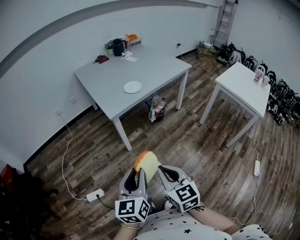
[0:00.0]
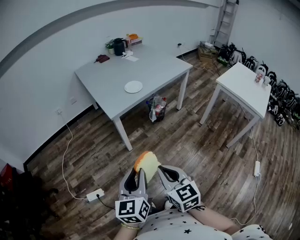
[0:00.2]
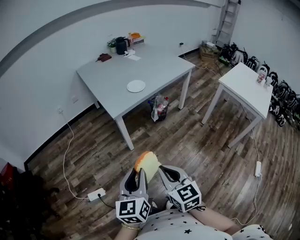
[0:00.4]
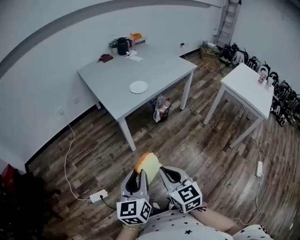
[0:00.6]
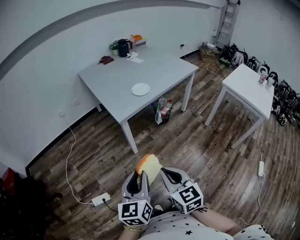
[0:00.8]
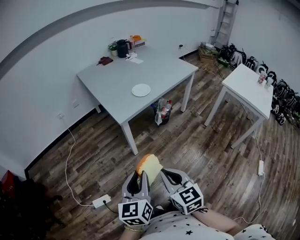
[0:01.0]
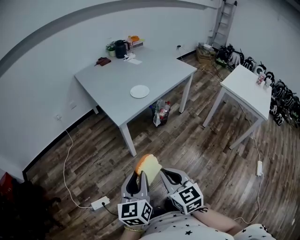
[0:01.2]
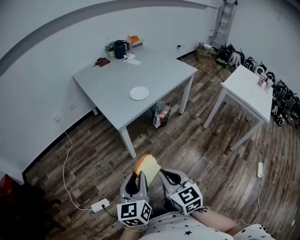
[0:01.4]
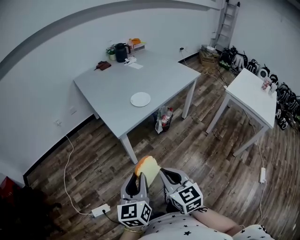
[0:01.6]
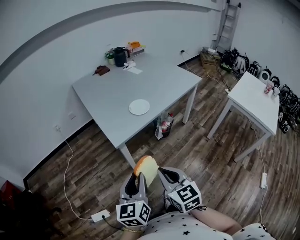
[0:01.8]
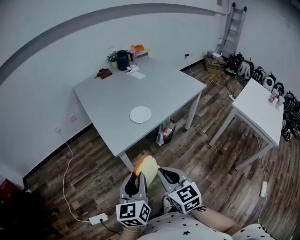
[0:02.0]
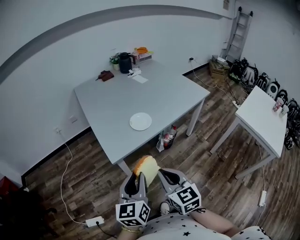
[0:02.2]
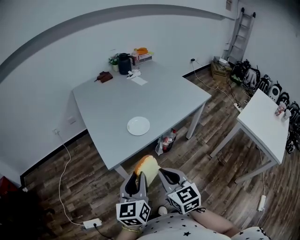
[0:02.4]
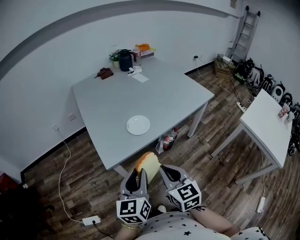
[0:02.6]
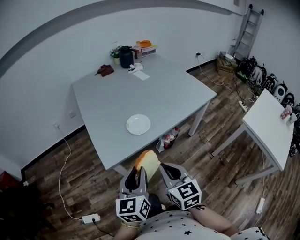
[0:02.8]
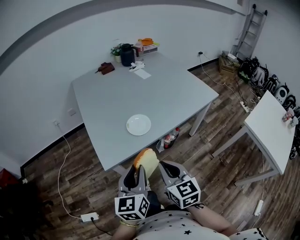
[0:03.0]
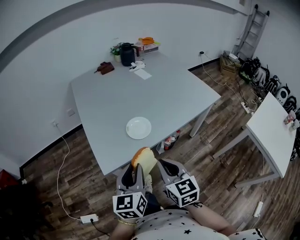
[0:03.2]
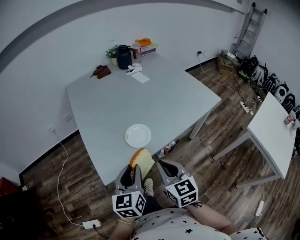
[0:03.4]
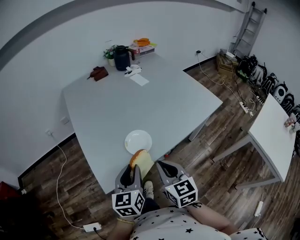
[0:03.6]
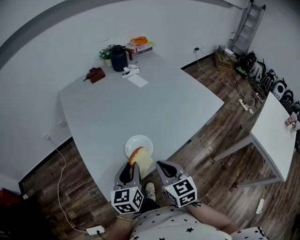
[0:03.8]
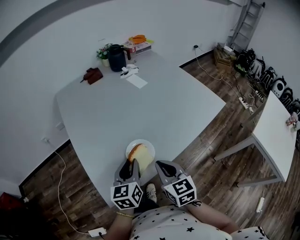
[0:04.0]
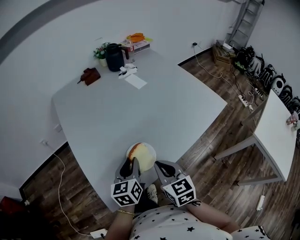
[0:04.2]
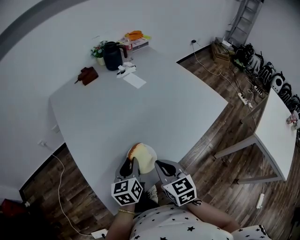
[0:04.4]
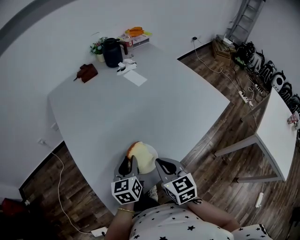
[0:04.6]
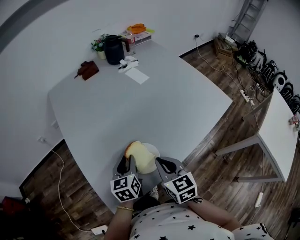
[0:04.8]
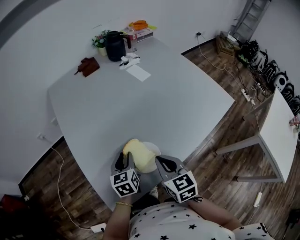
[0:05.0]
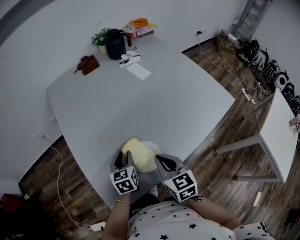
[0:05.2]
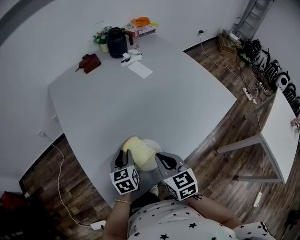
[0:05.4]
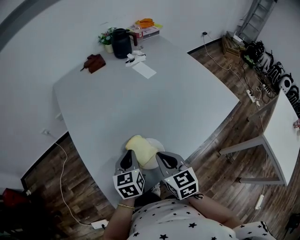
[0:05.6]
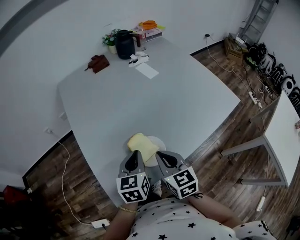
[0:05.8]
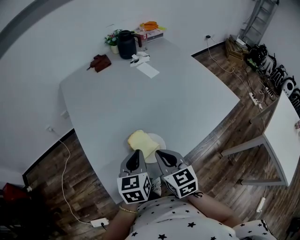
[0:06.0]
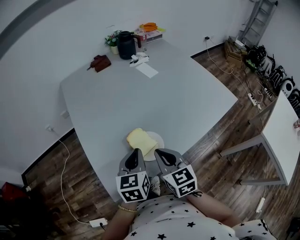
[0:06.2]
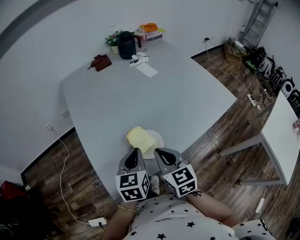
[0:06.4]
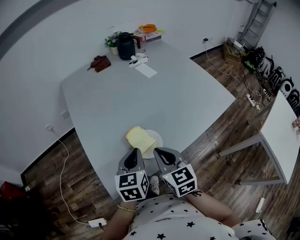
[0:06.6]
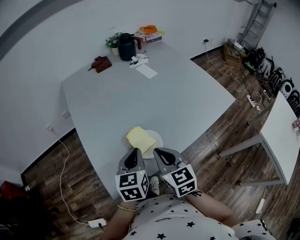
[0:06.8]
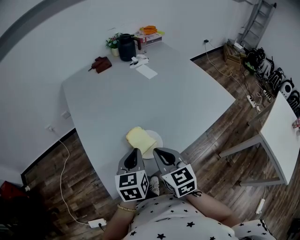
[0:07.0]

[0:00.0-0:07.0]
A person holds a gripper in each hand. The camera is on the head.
0:00.0 to 0:01.4: The grippers both shift forward and to the left by approximately 10 cm.
0:01.4 to 0:02.8: Both grippers move forward and to the right, some 30 cm.
0:02.8 to 0:04.2: The two grippers go about 30 cm forward.
0:04.2 to 0:05.6: The right gripper ends up some 5 cm from where it was.
0:05.6 to 0:07.0: The right gripper changes place by some 5 cm. Meanwhile the left gripper travels backward and upward by some 10 cm.

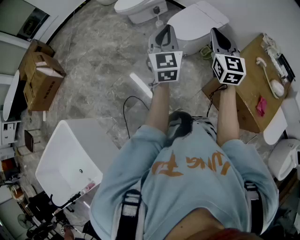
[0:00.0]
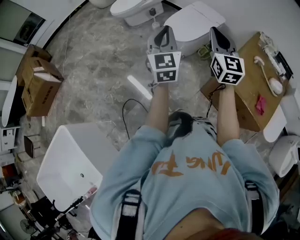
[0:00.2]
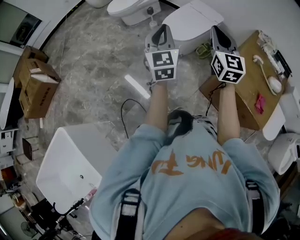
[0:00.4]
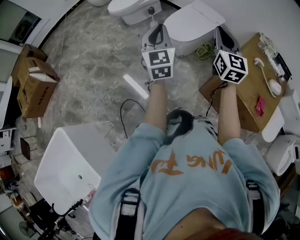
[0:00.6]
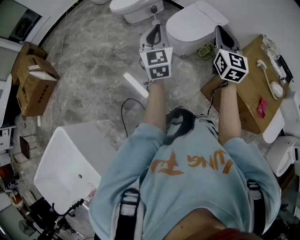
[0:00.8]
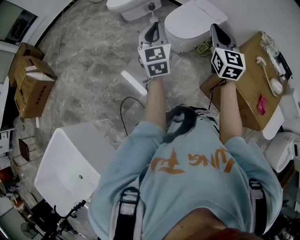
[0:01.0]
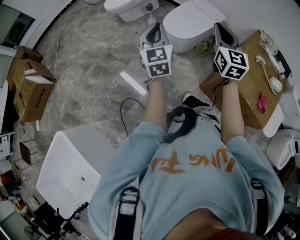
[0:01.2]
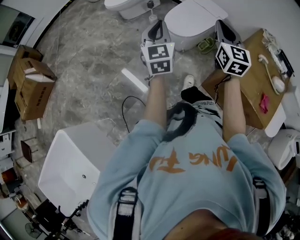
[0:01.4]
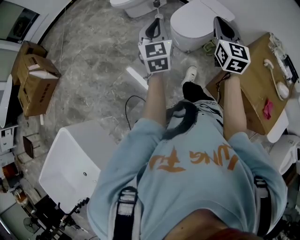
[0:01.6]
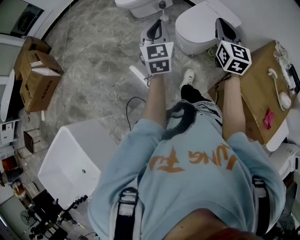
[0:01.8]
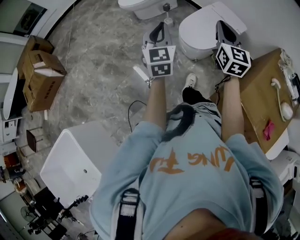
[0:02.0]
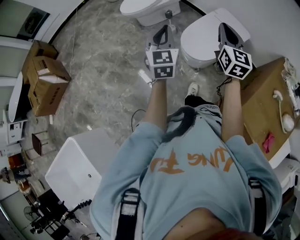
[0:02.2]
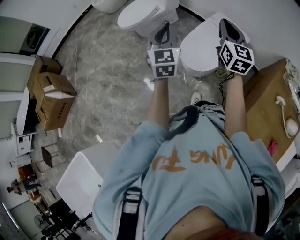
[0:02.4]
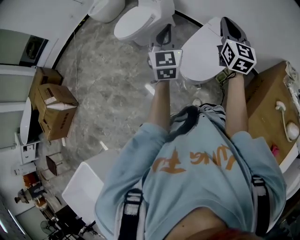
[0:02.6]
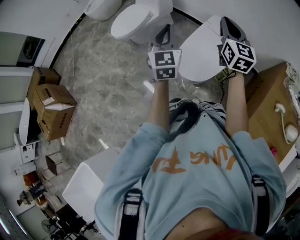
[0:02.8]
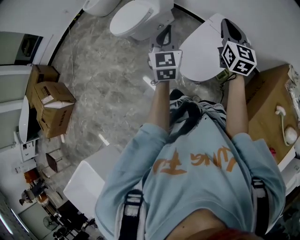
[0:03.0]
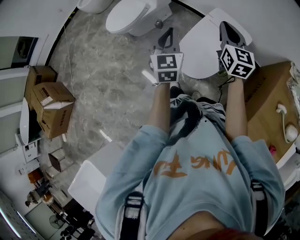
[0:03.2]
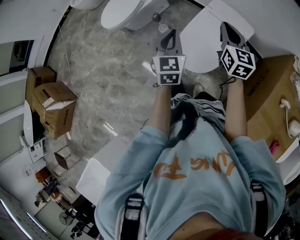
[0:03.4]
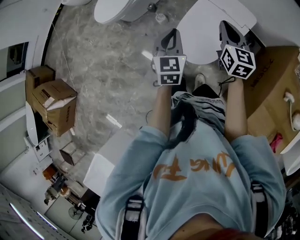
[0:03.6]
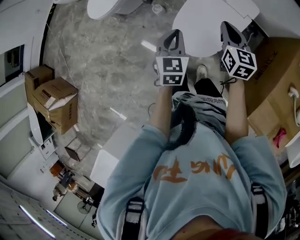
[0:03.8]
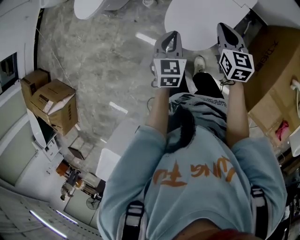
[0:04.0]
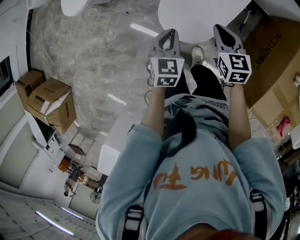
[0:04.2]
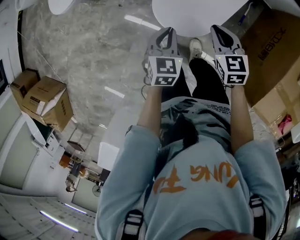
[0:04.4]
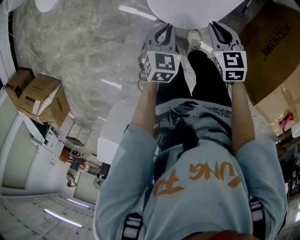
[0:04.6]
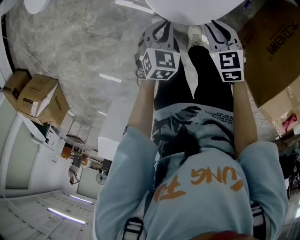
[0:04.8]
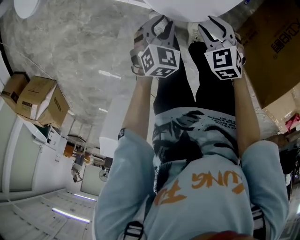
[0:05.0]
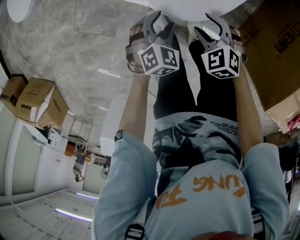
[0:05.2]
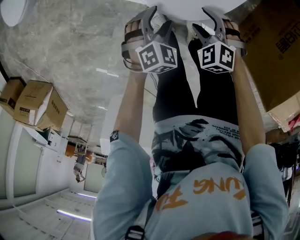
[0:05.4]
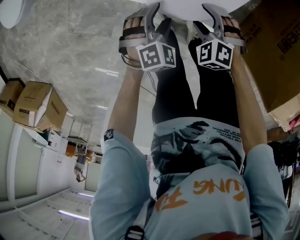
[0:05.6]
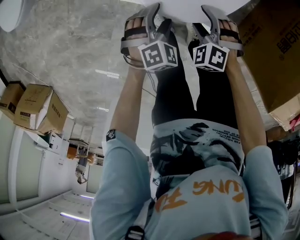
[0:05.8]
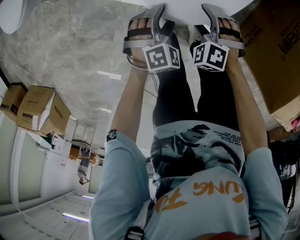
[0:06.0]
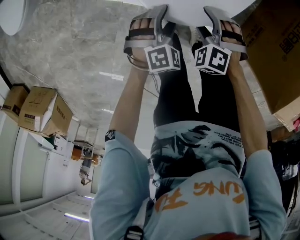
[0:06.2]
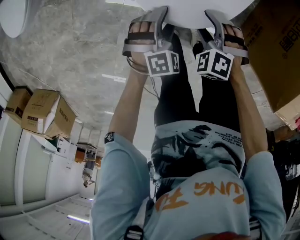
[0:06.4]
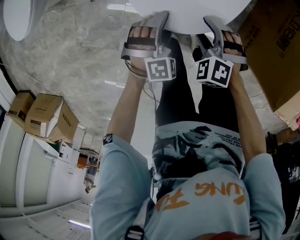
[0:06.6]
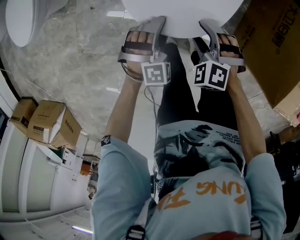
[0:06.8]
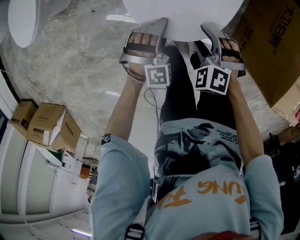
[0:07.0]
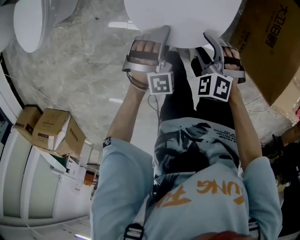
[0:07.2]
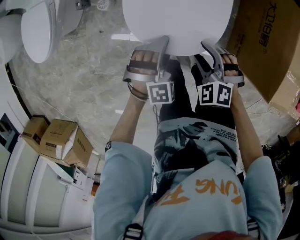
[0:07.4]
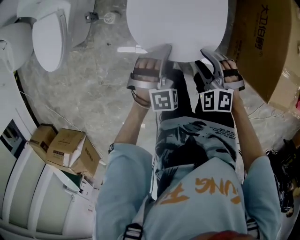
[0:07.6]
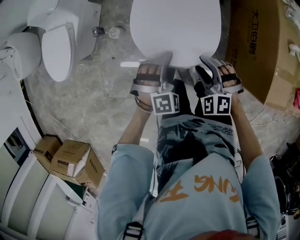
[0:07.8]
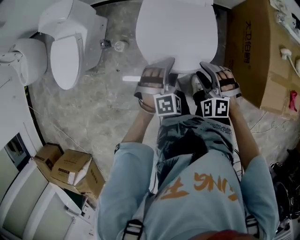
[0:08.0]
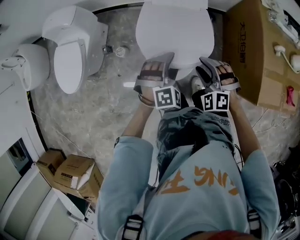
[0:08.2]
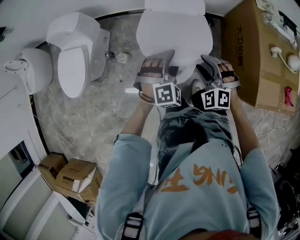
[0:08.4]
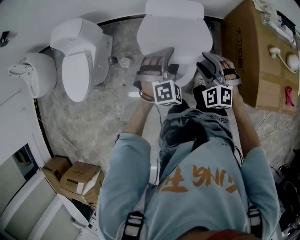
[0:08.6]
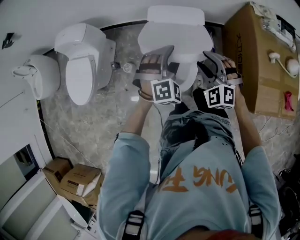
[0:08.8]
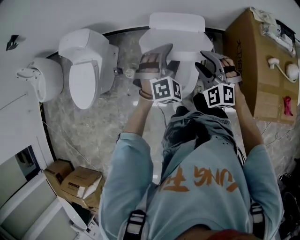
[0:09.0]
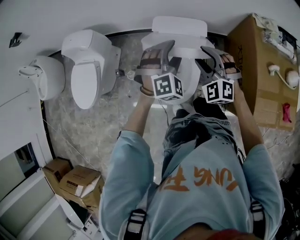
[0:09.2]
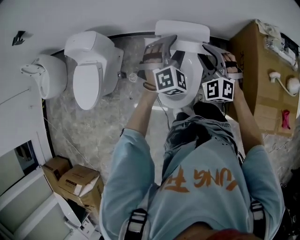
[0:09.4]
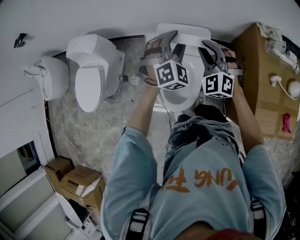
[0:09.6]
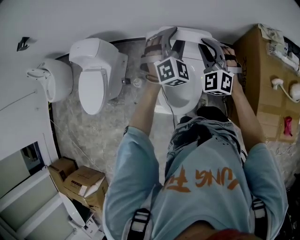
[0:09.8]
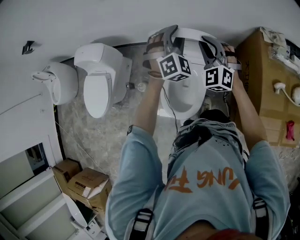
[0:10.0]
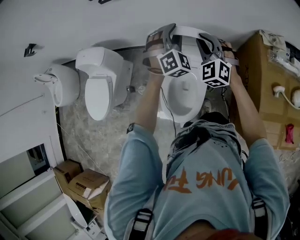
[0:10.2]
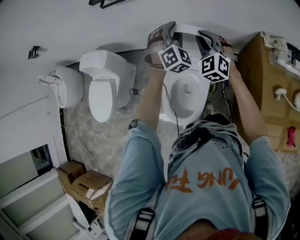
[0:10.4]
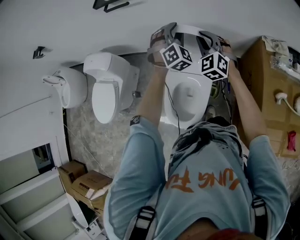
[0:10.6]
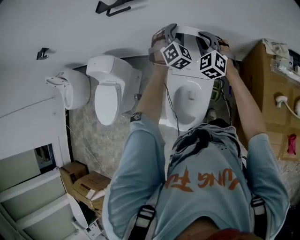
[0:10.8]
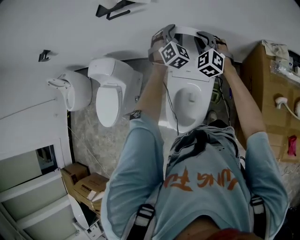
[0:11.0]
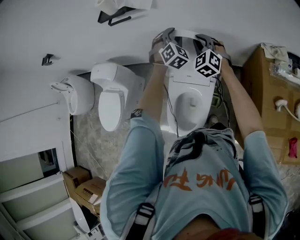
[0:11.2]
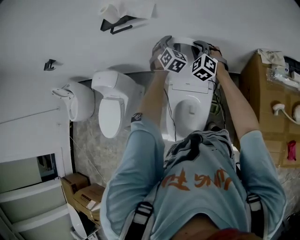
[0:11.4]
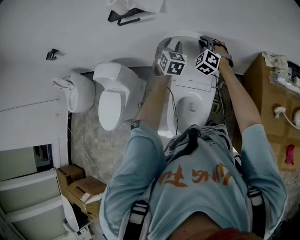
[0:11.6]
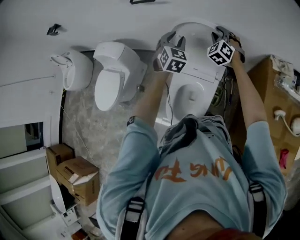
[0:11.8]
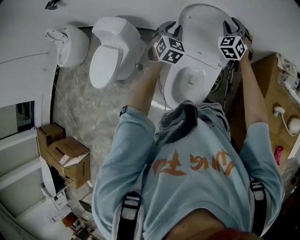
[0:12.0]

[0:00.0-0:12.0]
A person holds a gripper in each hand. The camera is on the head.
0:00.0 to 0:01.6: The left gripper moves forward, to the left and downward, roughly 15 cm; the right gripper shifts roughly 15 cm forward and to the left.
0:01.6 to 0:03.0: Both grippers are carried forward, some 40 cm.
0:03.0 to 0:04.4: The grippers both shift downward by some 40 cm. The left gripper tips its fingers downward by roughly 40 degrees. The right gripper angles its fingers downward, by some 40 degrees.
0:04.4 to 0:06.0: The two grippers go some 25 cm downward. The left gripper rolls clockwise, seen from behind, by approximately 50 degrees, and opens up. Meanwhile the right gripper twists about 50 degrees counterclockwise, seen from behind, and opens.
0:06.0 to 0:07.6: The grippers both shift upward by approximately 25 cm. The left gripper rotates approximately 30 degrees.
0:07.6 to 0:09.0: Both grippers travel together upward and forward, some 30 cm. The right gripper turns by roughly 20 degrees.
0:09.0 to 0:10.4: Both grippers travel together forward, about 25 cm. The left gripper closes. Meanwhile the right gripper closes its fingers.
0:10.4 to 0:12.0: The left gripper travels to the left and backward by some 15 cm, and turns by approximately 30 degrees.

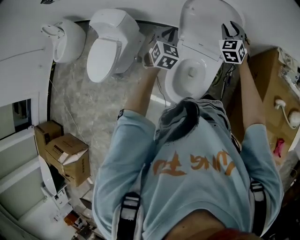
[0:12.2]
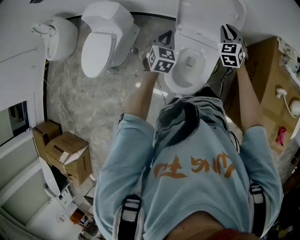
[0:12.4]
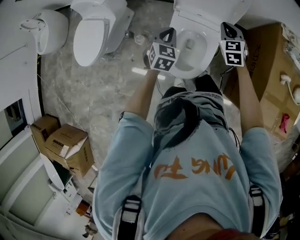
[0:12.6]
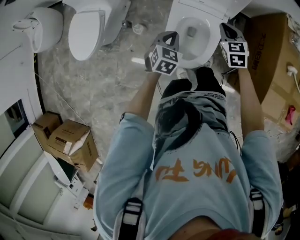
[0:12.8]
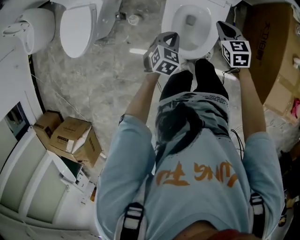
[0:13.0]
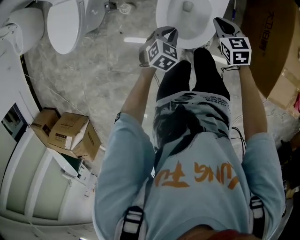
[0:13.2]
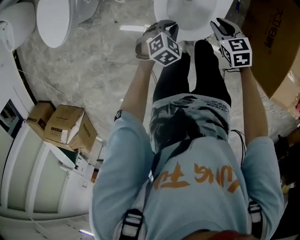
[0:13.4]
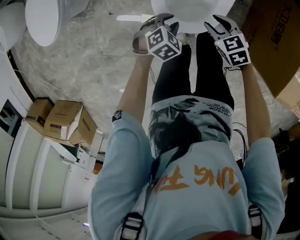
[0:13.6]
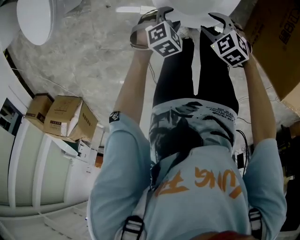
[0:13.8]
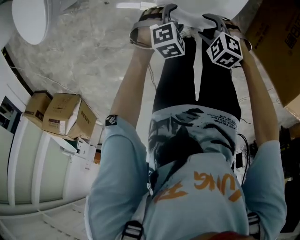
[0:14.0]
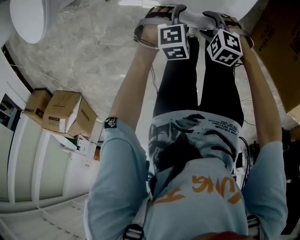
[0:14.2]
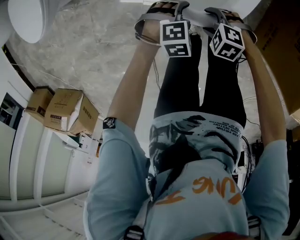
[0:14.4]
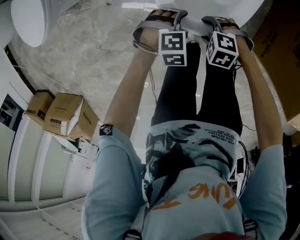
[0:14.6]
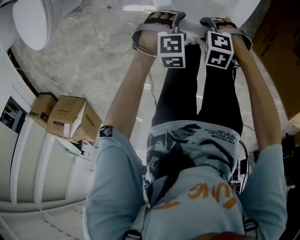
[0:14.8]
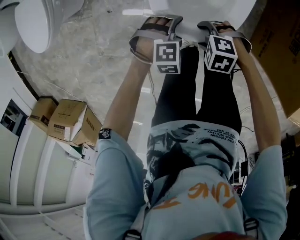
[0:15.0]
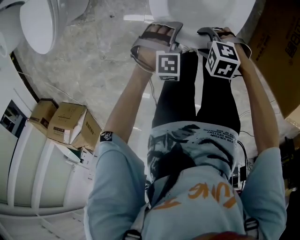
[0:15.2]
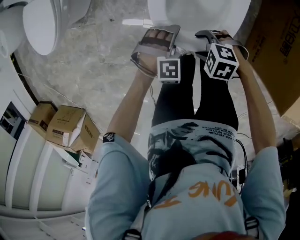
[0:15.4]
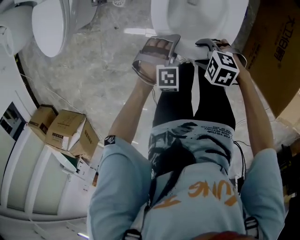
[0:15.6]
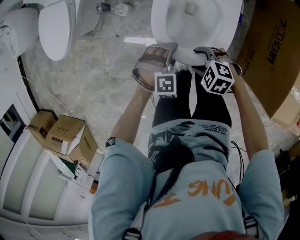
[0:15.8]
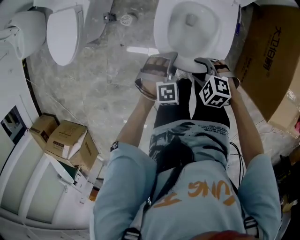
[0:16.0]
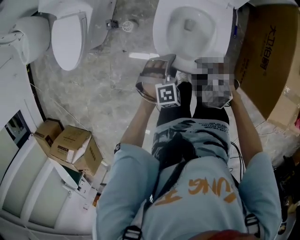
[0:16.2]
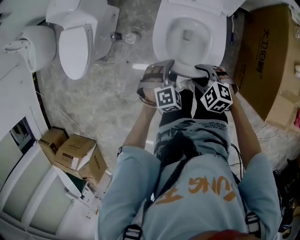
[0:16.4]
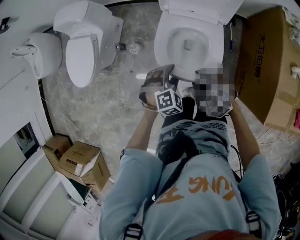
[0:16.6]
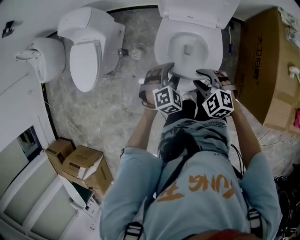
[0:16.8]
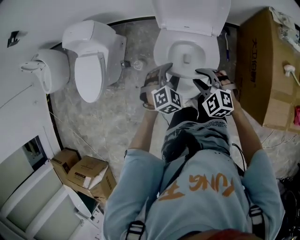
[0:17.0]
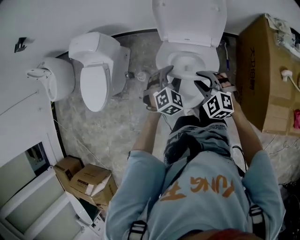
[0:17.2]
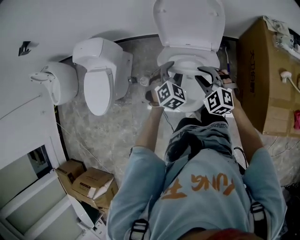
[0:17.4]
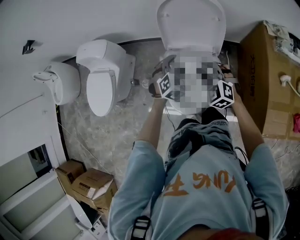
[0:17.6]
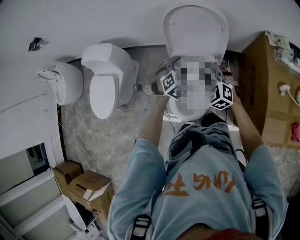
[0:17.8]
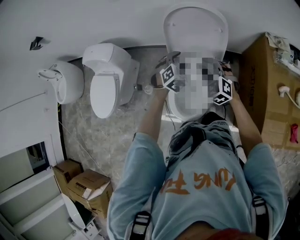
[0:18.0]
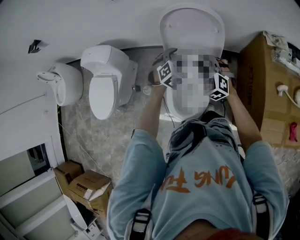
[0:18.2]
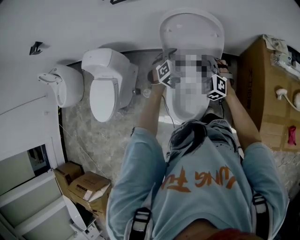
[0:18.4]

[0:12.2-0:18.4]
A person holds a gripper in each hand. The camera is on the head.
0:12.2 to 0:13.8: Both grippers travel together downward, roughly 50 cm. The right gripper angles its fingers downward, by some 40 degrees, and closes and opens again. The left gripper angles its fingers downward, by some 40 degrees, and opens its fingers.
0:13.8 to 0:15.4: The left gripper changes its angle by some 40 degrees, while the right gripper goes downward and returns, about 10 cm each way, and rotates about 30 degrees.
0:15.4 to 0:16.8: Both grippers travel together upward, roughly 25 cm. The right gripper turns by roughly 40 degrees, while the left gripper changes its angle by some 20 degrees.
0:16.8 to 0:18.4: The grippers both shift forward and upward by about 30 cm. The right gripper changes its angle by some 30 degrees.
